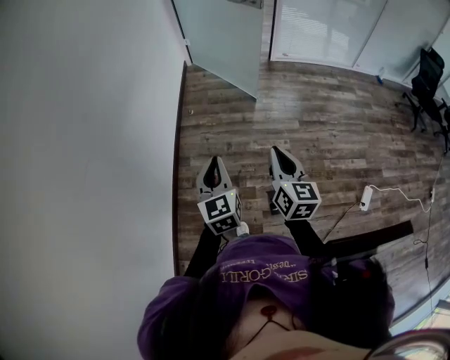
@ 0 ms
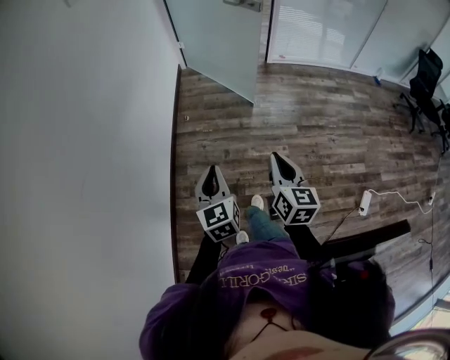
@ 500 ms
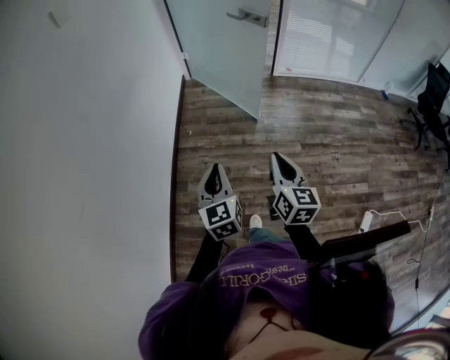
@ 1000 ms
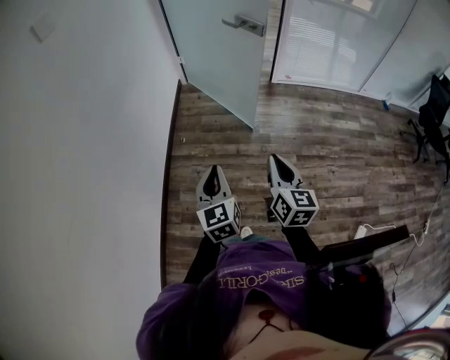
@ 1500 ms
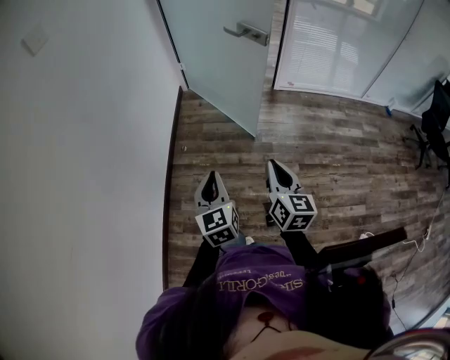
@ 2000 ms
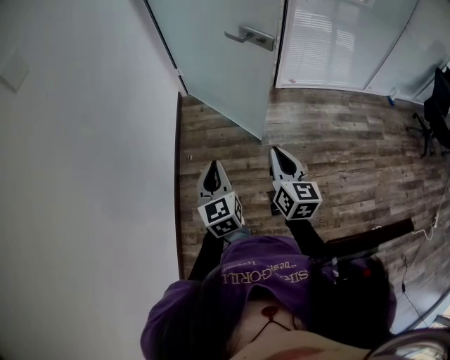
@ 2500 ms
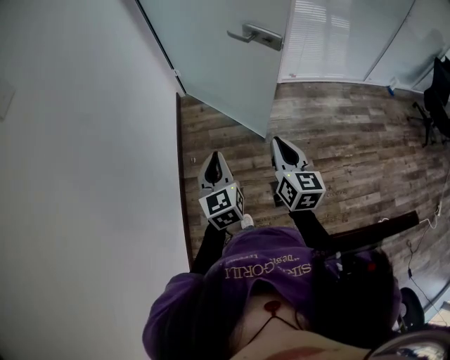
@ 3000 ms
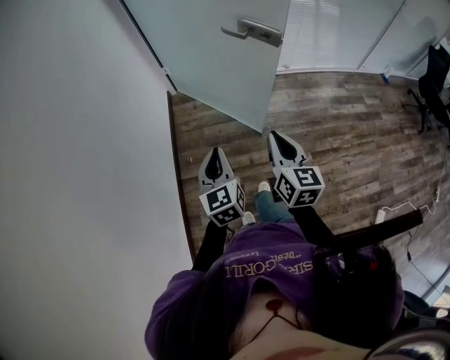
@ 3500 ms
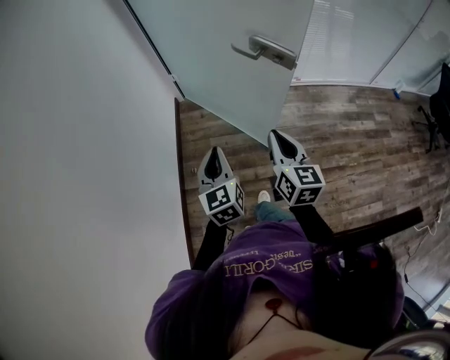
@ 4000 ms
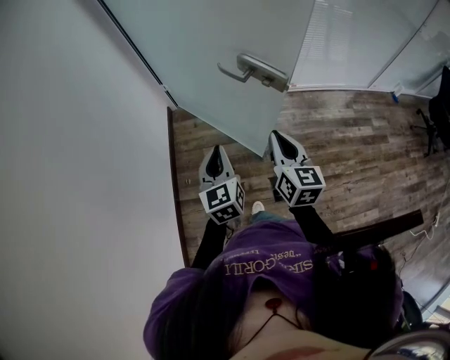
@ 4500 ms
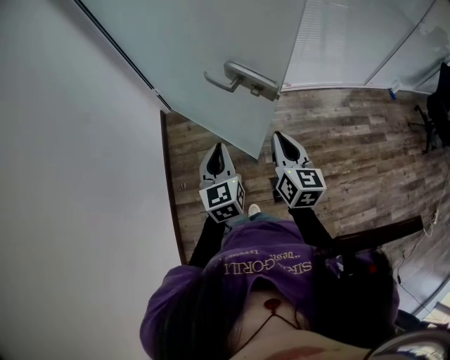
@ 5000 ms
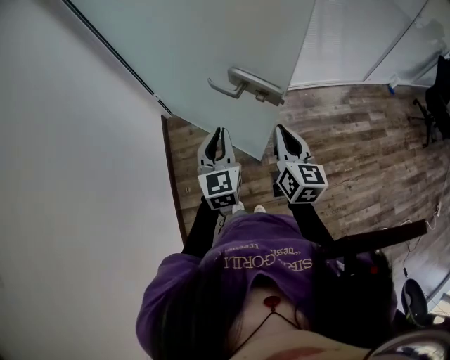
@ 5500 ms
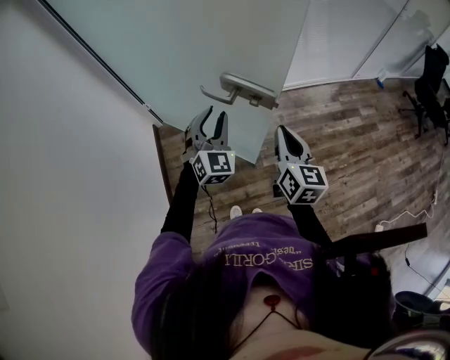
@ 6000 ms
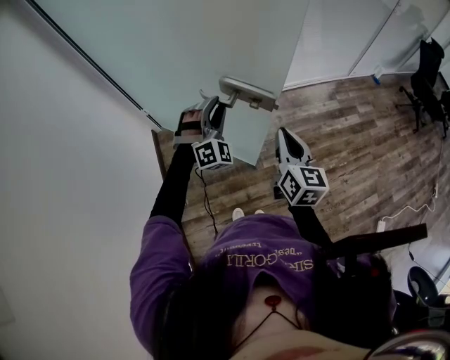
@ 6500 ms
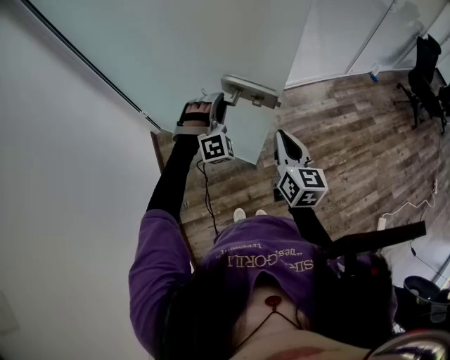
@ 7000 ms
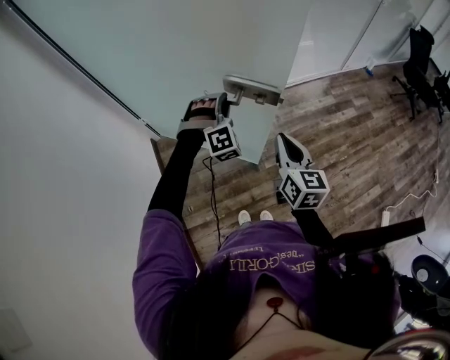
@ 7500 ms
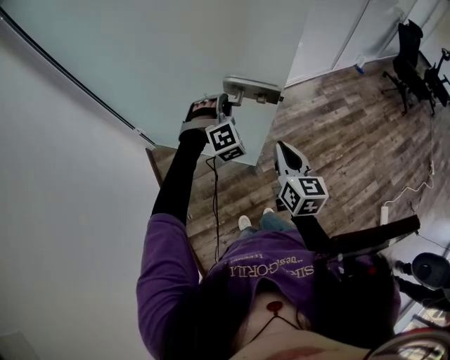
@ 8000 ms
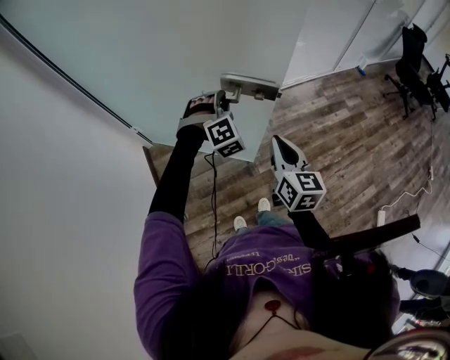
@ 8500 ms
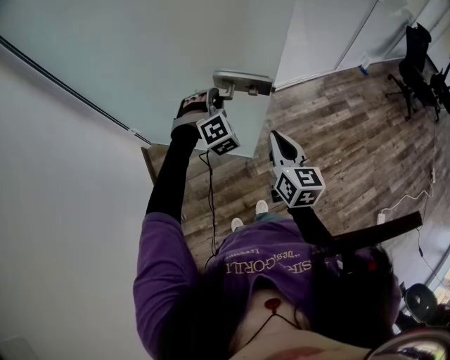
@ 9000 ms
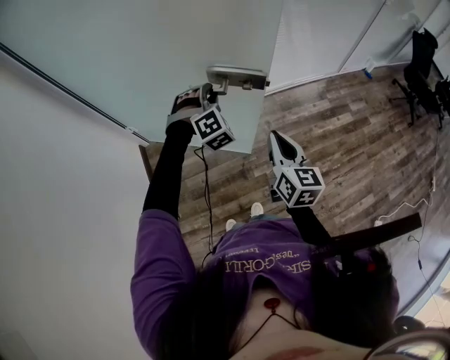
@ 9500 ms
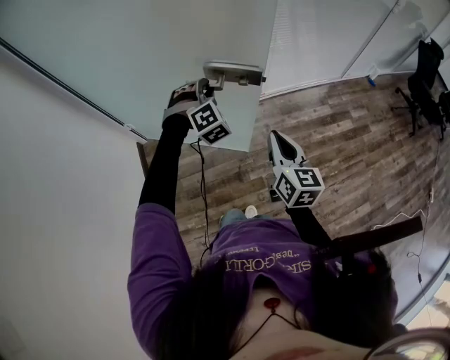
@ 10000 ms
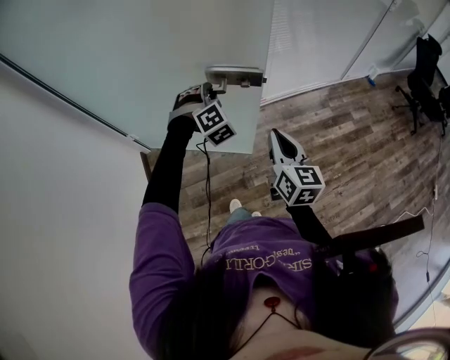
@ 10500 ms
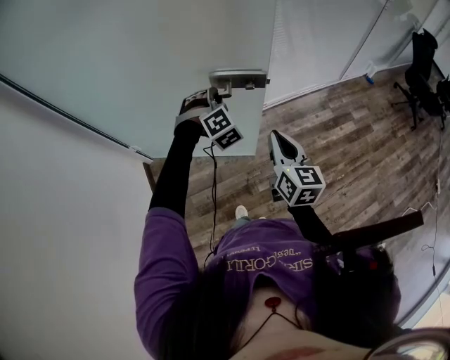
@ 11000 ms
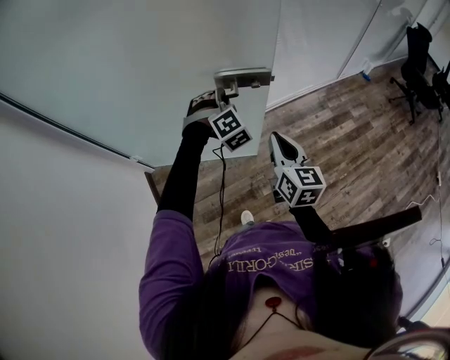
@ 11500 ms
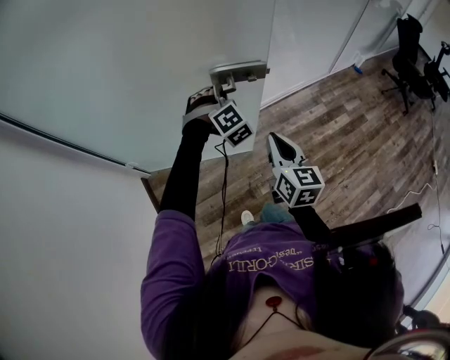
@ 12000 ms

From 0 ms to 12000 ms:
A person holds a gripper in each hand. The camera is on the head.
From 0 ms to 2000 ms: The two grippers go some 35 cm forward.
From 2000 ms to 4000 ms: The grippers both shift forward by approximately 35 cm.
From 4000 ms to 6000 ms: The left gripper is displaced forward and to the right by roughly 30 cm, rolls clockwise, seen from behind, by about 50 degrees, and opens, while the right gripper goes some 20 cm forward and to the right.
From 6000 ms to 8000 ms: The left gripper is displaced forward by some 10 cm, and rotates around the line of its fingers by roughly 40 degrees, clockwise from behind.
From 8000 ms to 10000 ms: The left gripper goes approximately 15 cm forward; the right gripper shifts roughly 15 cm forward and to the right.
From 10000 ms to 12000 ms: The two grippers go approximately 10 cm forward.

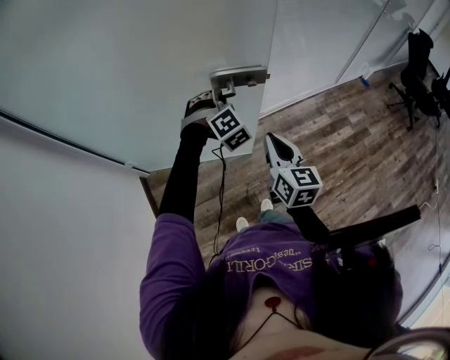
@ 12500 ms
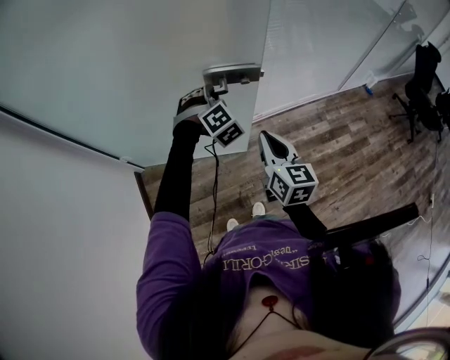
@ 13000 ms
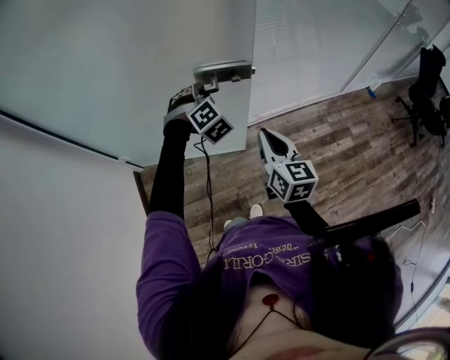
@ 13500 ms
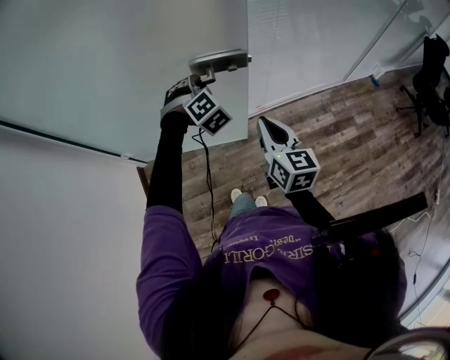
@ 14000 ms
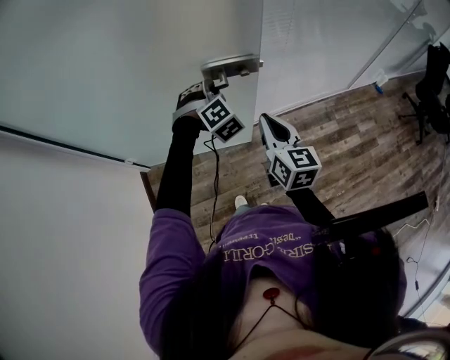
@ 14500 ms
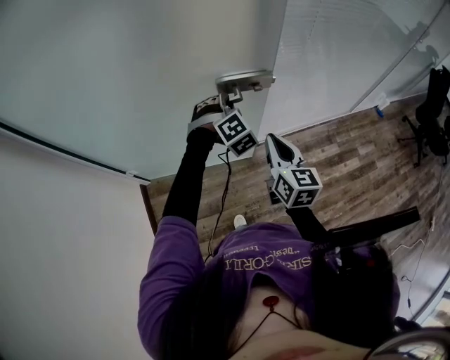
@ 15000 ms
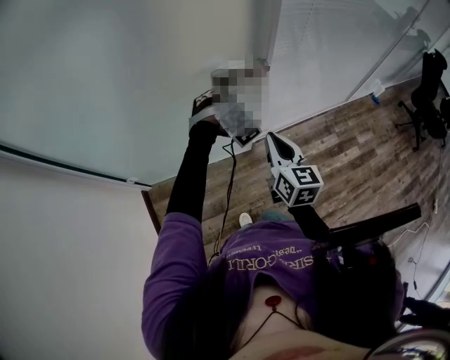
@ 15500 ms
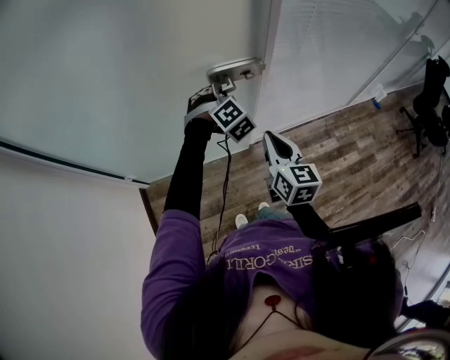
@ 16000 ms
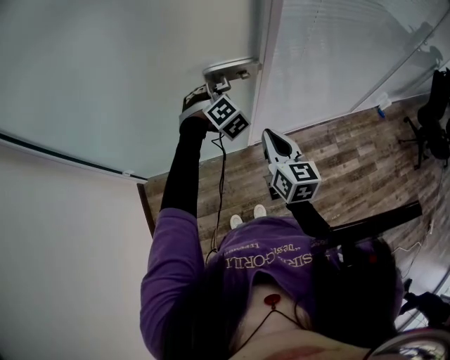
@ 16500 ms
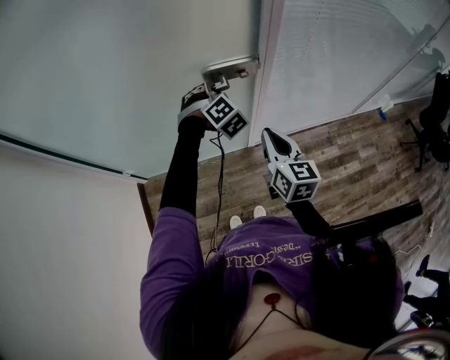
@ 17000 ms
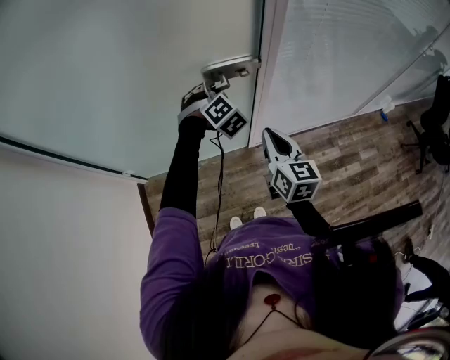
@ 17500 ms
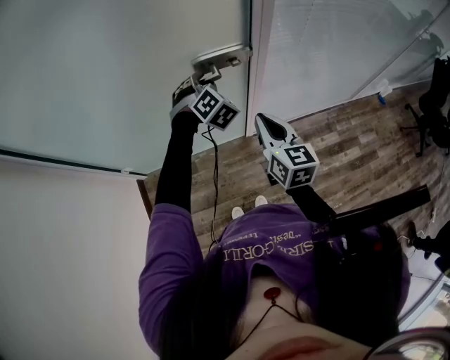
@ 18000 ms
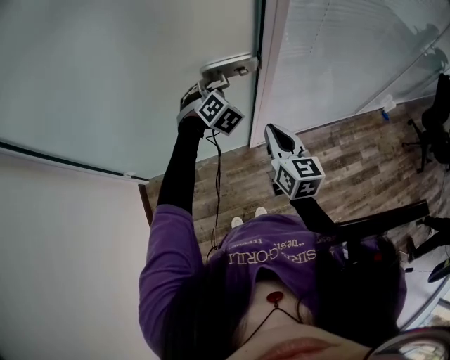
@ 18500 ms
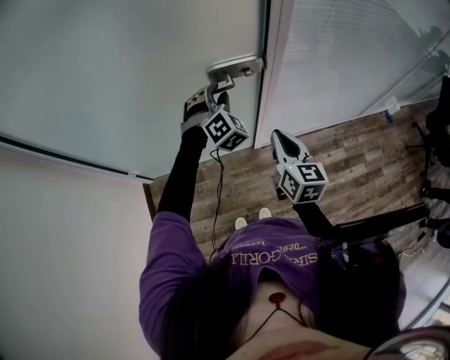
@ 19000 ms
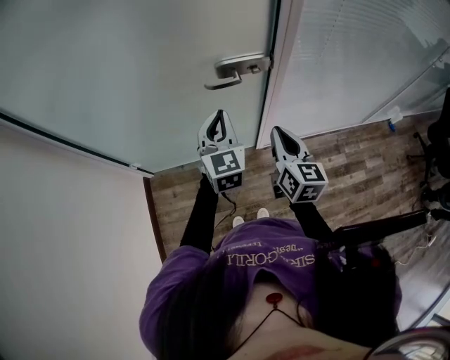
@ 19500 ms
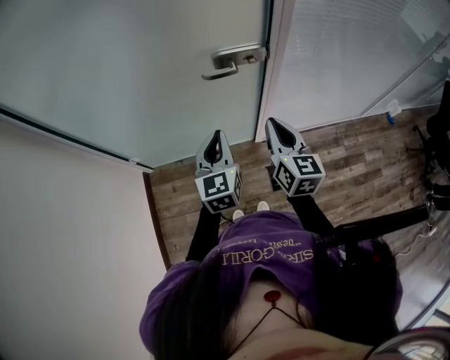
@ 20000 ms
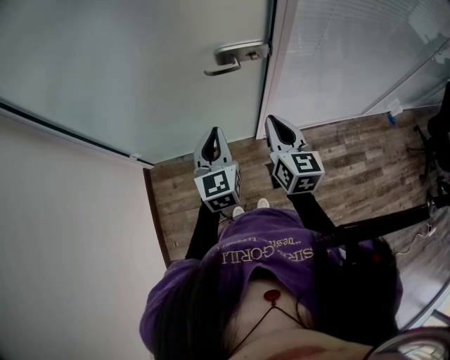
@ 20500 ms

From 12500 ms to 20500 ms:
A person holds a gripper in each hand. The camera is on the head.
From 12500 ms to 14500 ms: The grippers both shift forward by some 10 cm.
From 14500 ms to 16500 ms: The two grippers go some 10 cm forward.
From 16500 ms to 18500 ms: There are only small adjustments of the grippers.
From 18500 ms to 20500 ms: The right gripper shifts by about 5 cm; the left gripper heads backward, covering roughly 20 cm, rotates around the line of its fingers by roughly 50 degrees, counterclockwise from behind, and closes up.

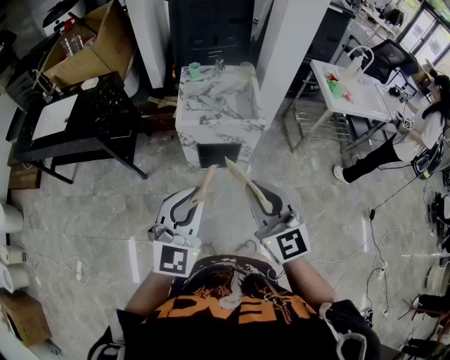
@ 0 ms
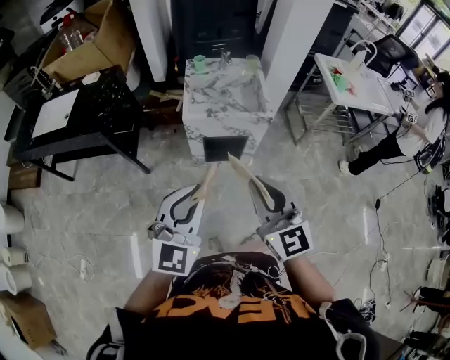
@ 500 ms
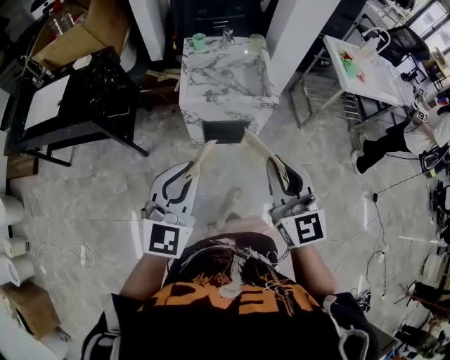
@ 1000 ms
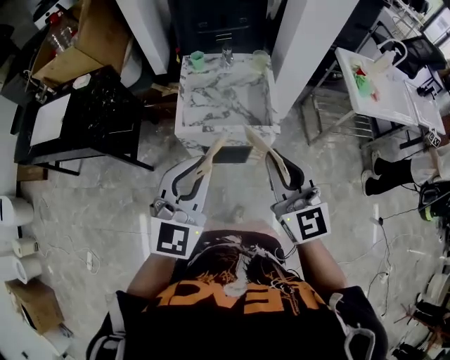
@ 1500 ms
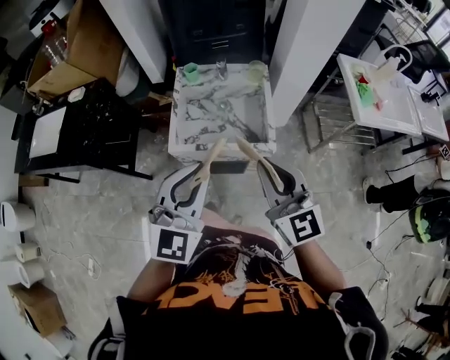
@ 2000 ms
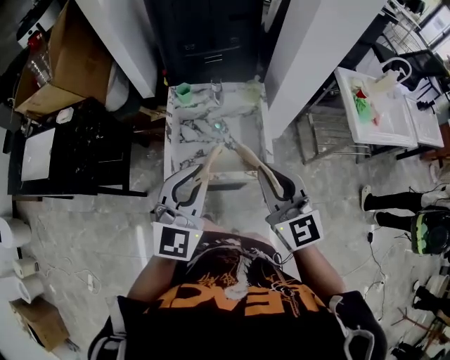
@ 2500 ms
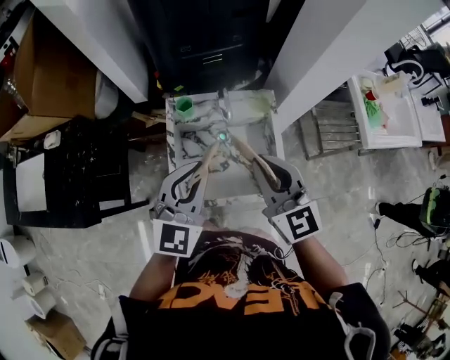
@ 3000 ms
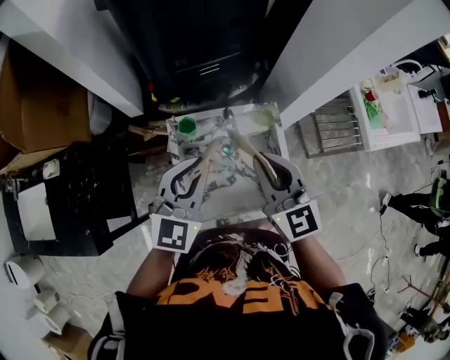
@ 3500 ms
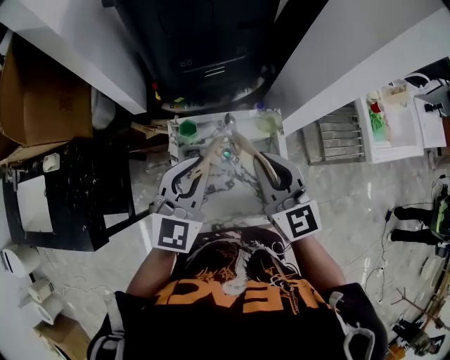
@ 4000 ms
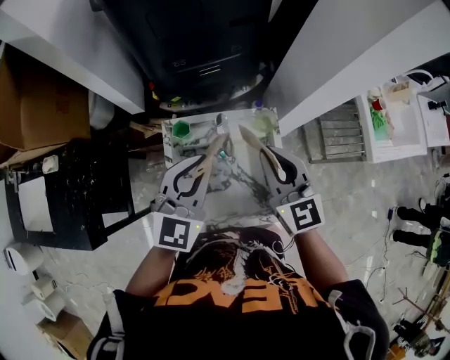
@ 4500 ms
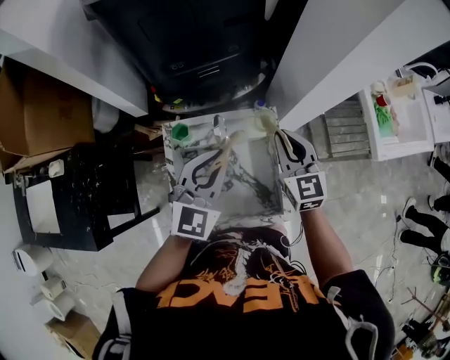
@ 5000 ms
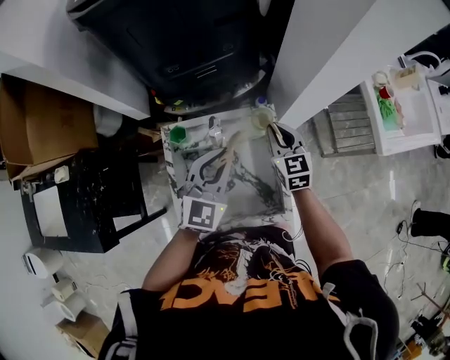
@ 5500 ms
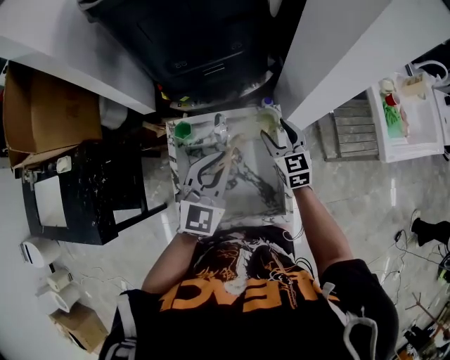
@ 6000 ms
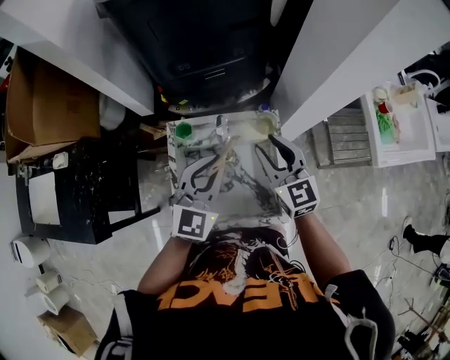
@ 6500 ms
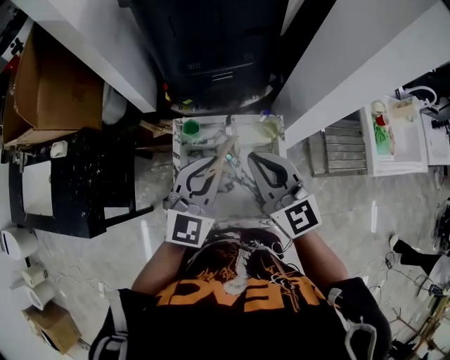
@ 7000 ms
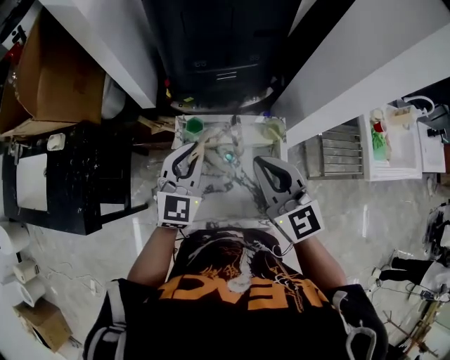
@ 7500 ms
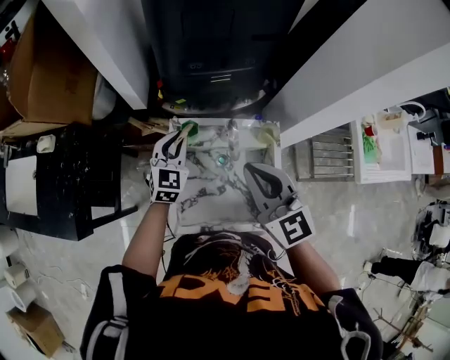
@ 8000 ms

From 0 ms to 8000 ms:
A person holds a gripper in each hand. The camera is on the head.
From 0 ms to 2000 ms: The grippers both shift forward by about 30 cm.
From 2000 ms to 4000 ms: Both grippers move forward, approximately 40 cm.
From 4000 ms to 6000 ms: The right gripper heads downward, forward and to the right, covering some 25 cm, and opens up. Meanwhile the left gripper heads to the right and downward, covering some 10 cm.
From 6000 ms to 8000 ms: The right gripper heads upward, to the left and backward, covering about 30 cm, swivels some 20 degrees, and closes its fingers. The left gripper moves to the left, downward and forward, about 20 cm.
